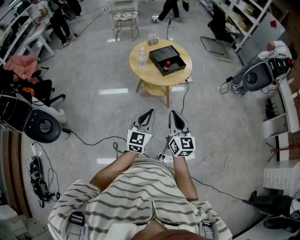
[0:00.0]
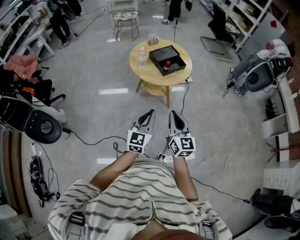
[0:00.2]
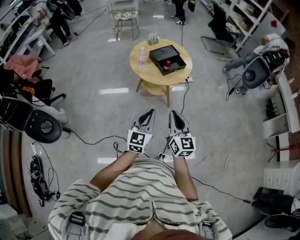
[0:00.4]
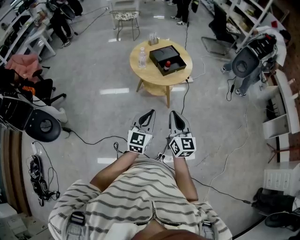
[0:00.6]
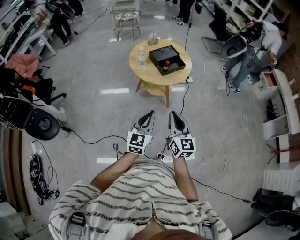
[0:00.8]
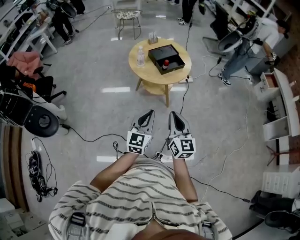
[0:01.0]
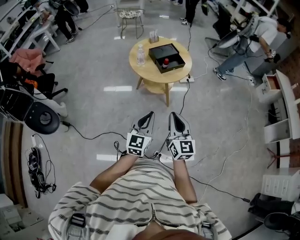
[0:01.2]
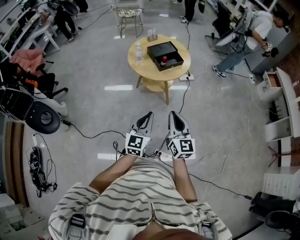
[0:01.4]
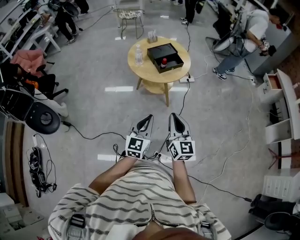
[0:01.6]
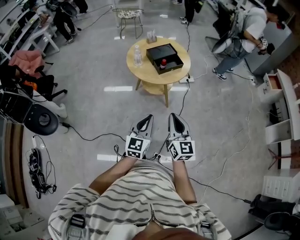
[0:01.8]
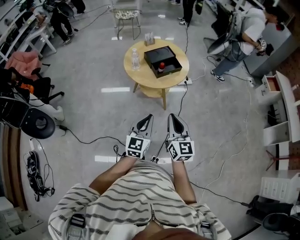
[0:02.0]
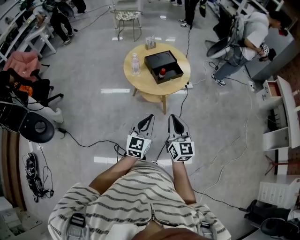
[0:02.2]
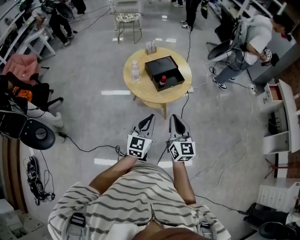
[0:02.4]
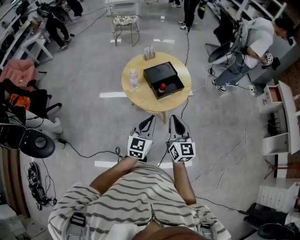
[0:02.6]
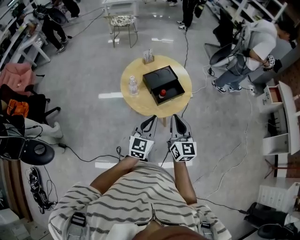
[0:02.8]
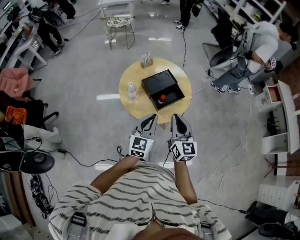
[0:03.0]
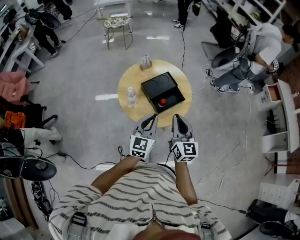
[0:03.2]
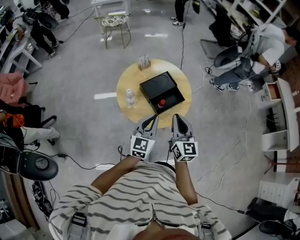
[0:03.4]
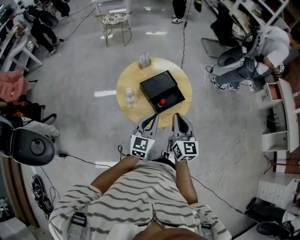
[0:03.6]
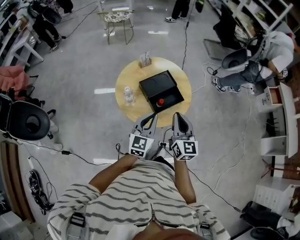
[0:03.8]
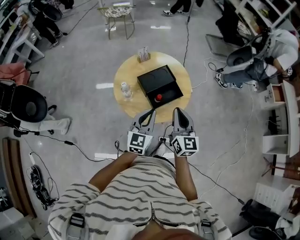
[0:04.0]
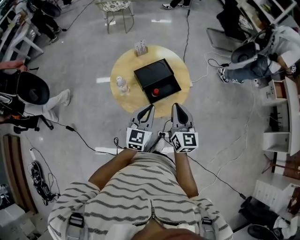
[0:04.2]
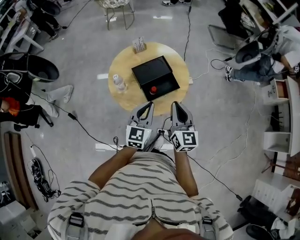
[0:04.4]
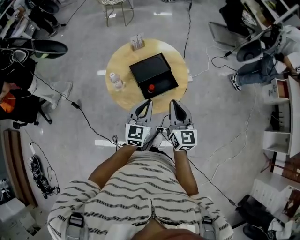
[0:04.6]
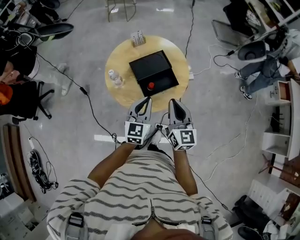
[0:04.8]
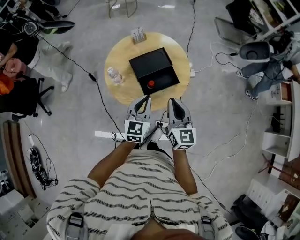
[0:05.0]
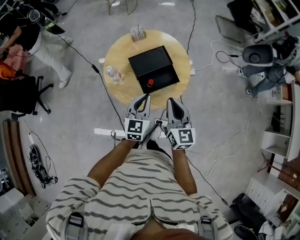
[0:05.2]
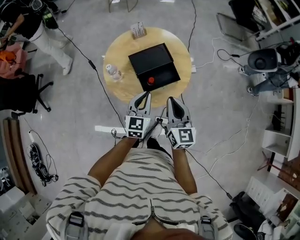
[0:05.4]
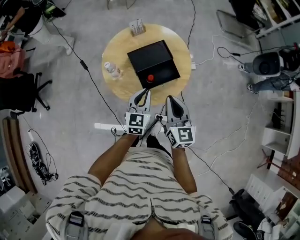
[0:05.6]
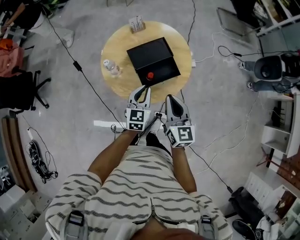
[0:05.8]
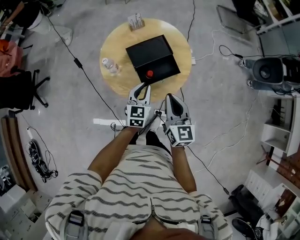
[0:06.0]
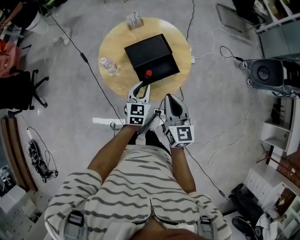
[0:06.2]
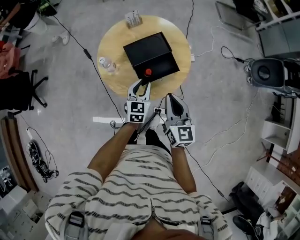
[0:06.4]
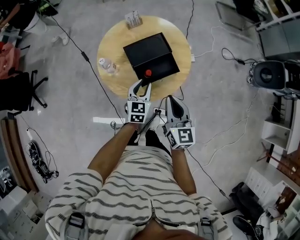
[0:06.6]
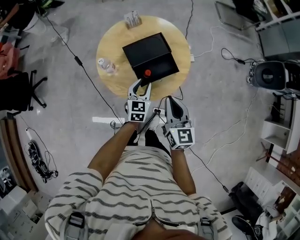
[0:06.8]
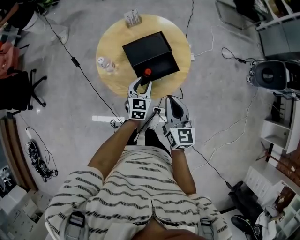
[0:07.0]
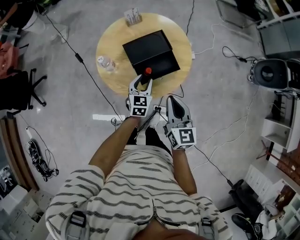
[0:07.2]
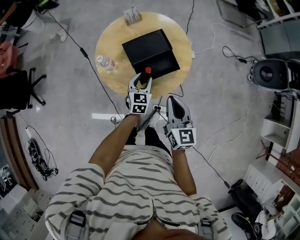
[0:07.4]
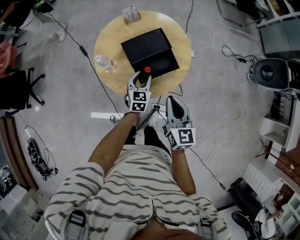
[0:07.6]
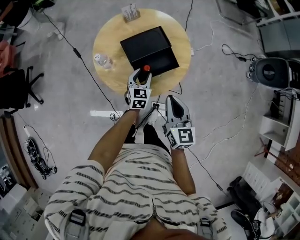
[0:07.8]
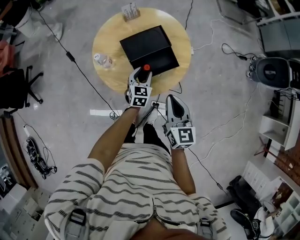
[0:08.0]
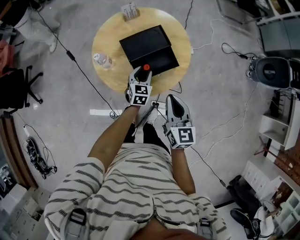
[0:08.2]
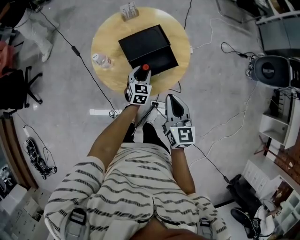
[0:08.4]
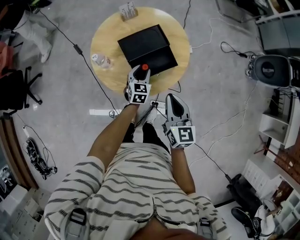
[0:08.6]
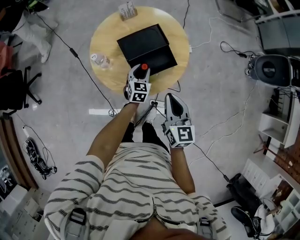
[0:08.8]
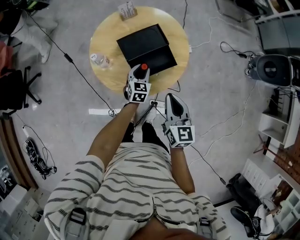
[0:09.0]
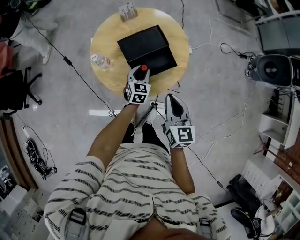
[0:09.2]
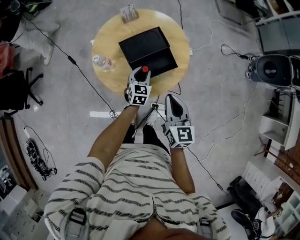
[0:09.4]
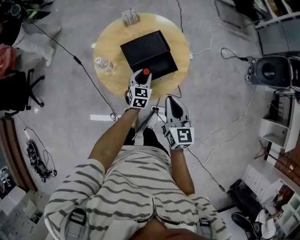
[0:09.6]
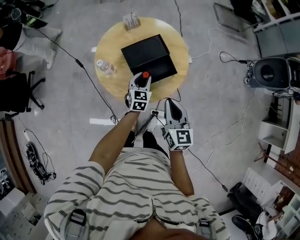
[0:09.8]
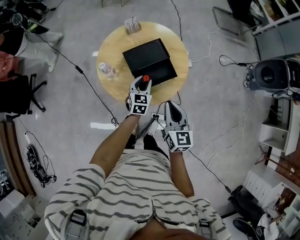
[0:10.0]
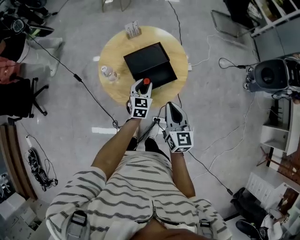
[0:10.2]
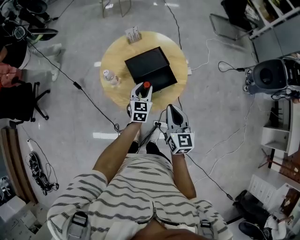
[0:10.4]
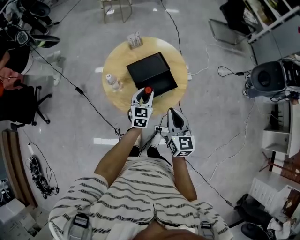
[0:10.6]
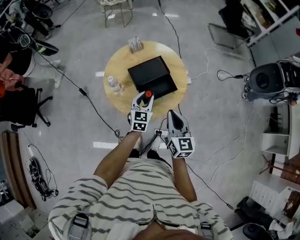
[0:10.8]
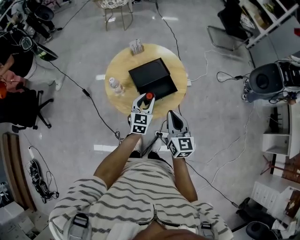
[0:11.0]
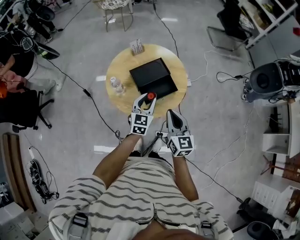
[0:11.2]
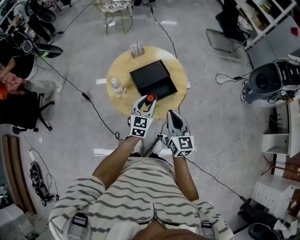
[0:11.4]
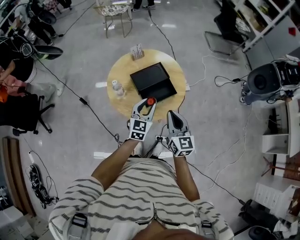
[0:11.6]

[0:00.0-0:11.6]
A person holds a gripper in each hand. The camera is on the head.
0:00.0 to 0:01.4: The grippers both shift to the right by approximately 5 cm.
0:01.4 to 0:02.8: The grippers both shift forward by approximately 30 cm.
0:02.8 to 0:04.4: The right gripper shifts approximately 15 cm forward and to the right, while the left gripper heads forward, covering about 10 cm.
0:04.4 to 0:05.8: The right gripper shifts some 5 cm downward. Meanwhile the left gripper heads downward, covering approximately 10 cm.
0:05.8 to 0:07.2: The left gripper is displaced downward by roughly 10 cm, and opens.
0:07.2 to 0:08.8: The left gripper is displaced downward by about 5 cm.
0:08.8 to 0:10.2: The left gripper is displaced upward by some 5 cm.
0:10.2 to 0:11.6: The left gripper shifts about 15 cm upward and backward.

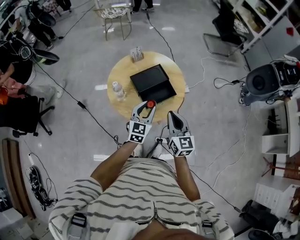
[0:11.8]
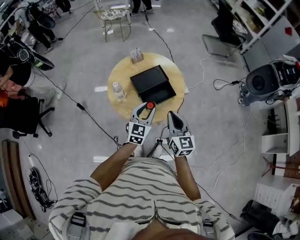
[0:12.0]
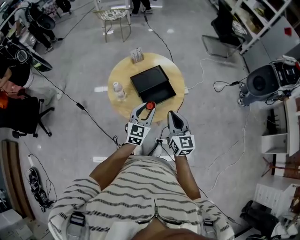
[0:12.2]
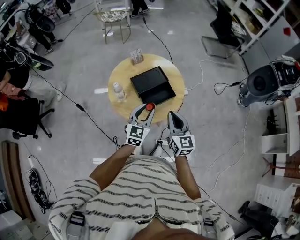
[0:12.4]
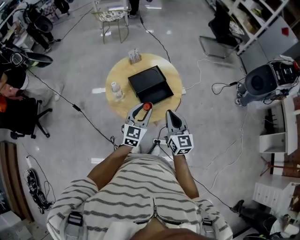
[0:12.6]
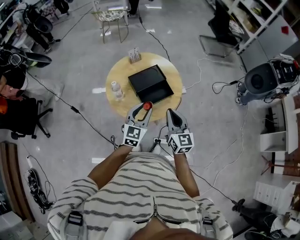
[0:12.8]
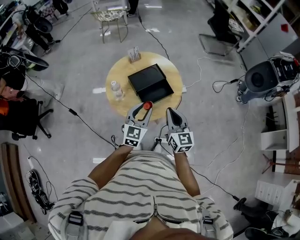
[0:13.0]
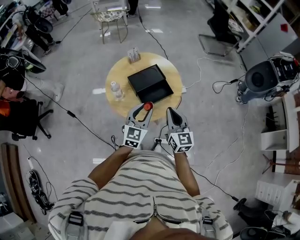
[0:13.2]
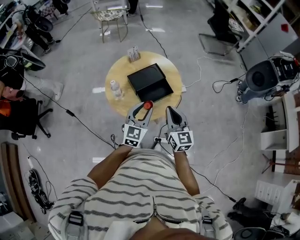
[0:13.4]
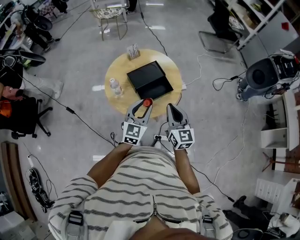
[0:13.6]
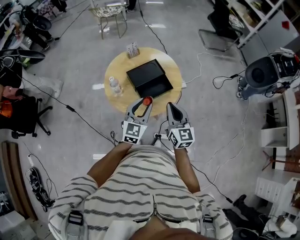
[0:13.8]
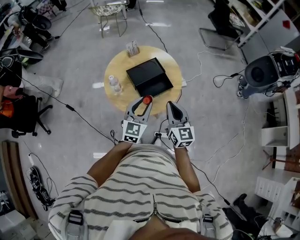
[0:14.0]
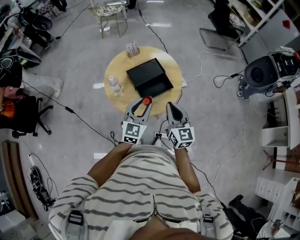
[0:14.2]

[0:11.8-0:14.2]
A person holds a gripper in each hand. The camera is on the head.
0:11.8 to 0:13.0: The grippers make only small movements.
0:13.0 to 0:14.2: Both grippers stay put.

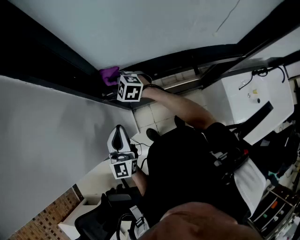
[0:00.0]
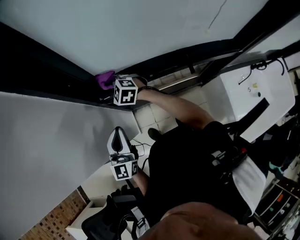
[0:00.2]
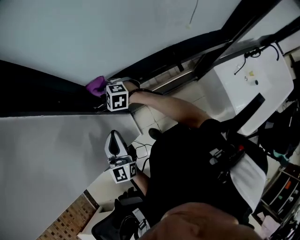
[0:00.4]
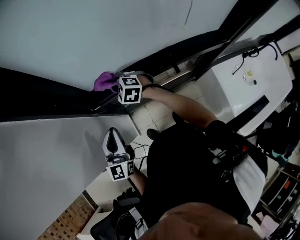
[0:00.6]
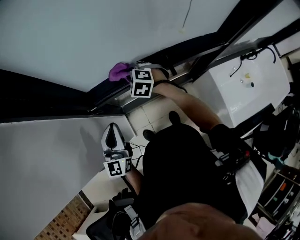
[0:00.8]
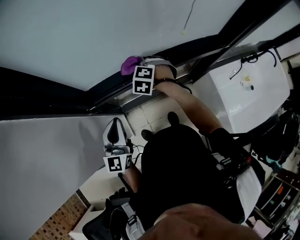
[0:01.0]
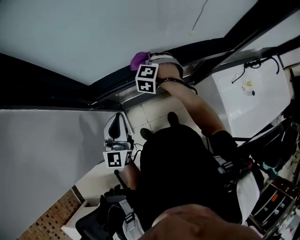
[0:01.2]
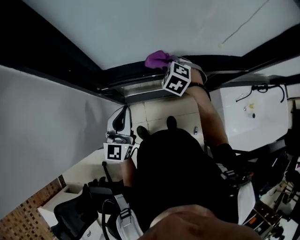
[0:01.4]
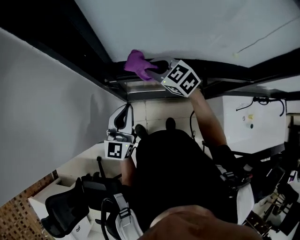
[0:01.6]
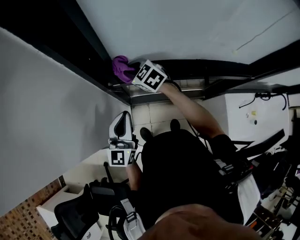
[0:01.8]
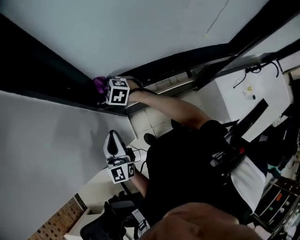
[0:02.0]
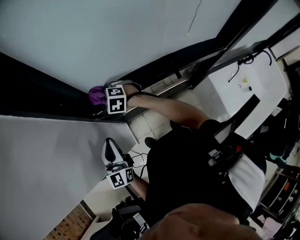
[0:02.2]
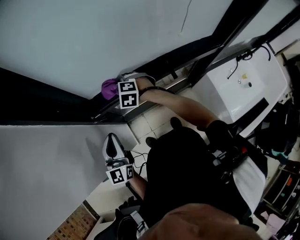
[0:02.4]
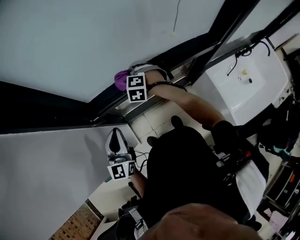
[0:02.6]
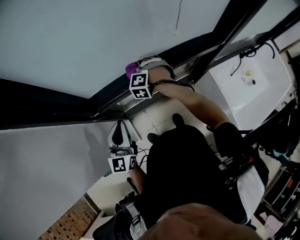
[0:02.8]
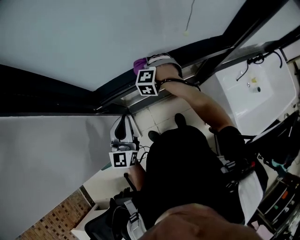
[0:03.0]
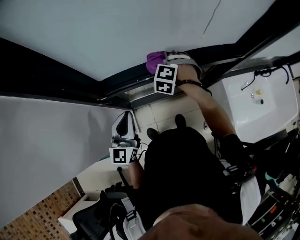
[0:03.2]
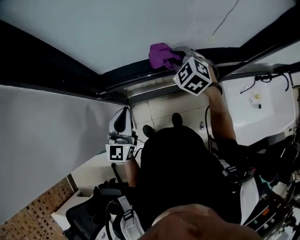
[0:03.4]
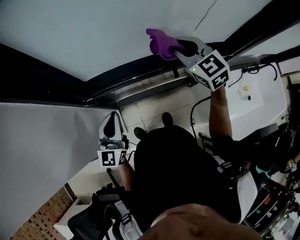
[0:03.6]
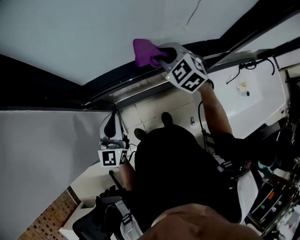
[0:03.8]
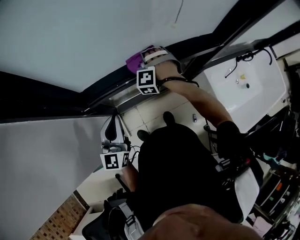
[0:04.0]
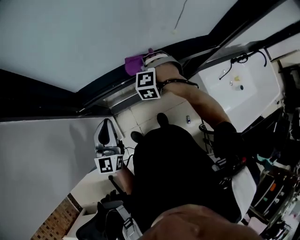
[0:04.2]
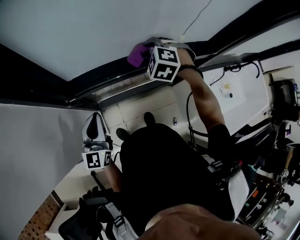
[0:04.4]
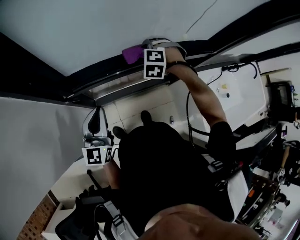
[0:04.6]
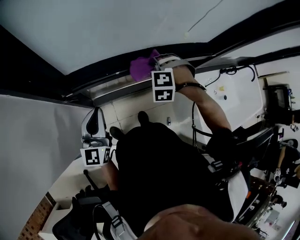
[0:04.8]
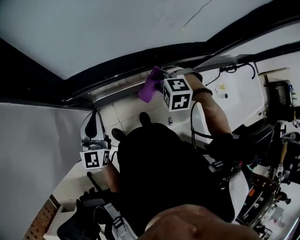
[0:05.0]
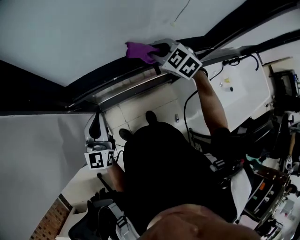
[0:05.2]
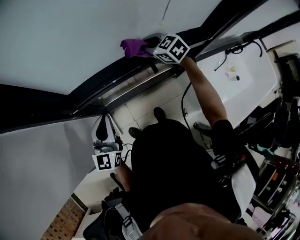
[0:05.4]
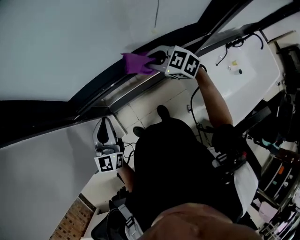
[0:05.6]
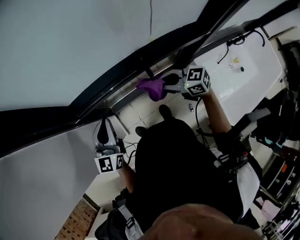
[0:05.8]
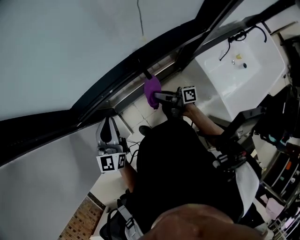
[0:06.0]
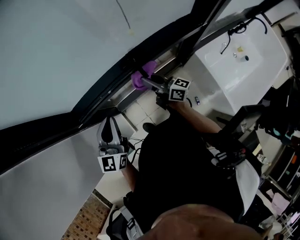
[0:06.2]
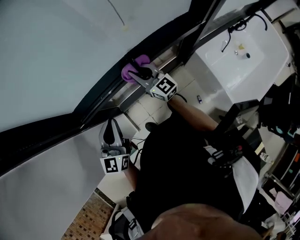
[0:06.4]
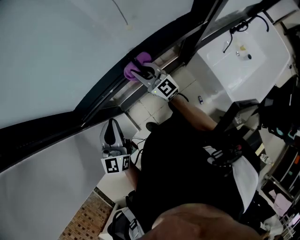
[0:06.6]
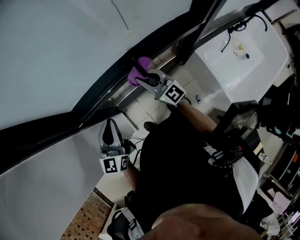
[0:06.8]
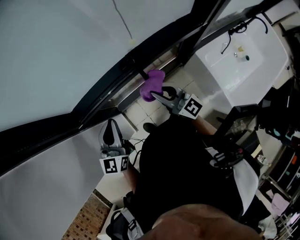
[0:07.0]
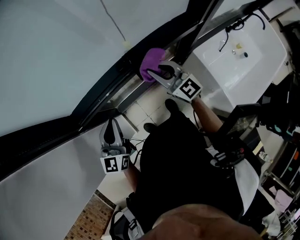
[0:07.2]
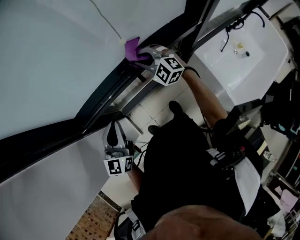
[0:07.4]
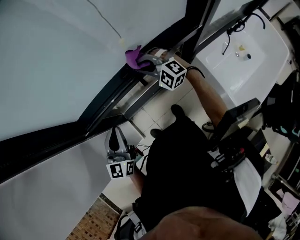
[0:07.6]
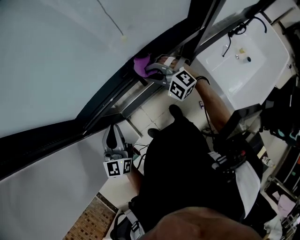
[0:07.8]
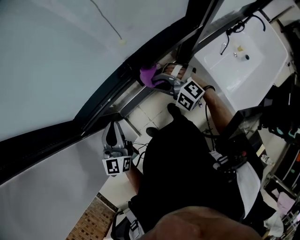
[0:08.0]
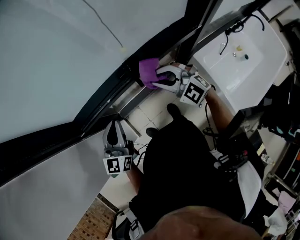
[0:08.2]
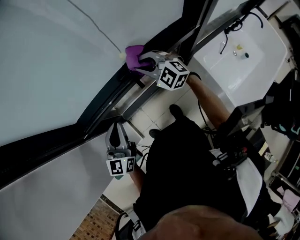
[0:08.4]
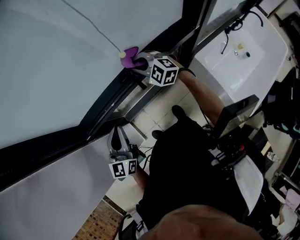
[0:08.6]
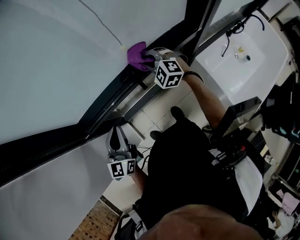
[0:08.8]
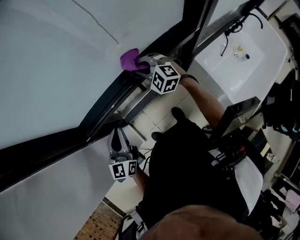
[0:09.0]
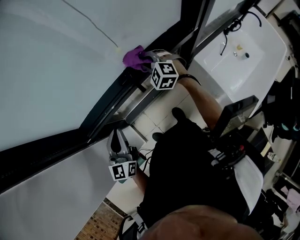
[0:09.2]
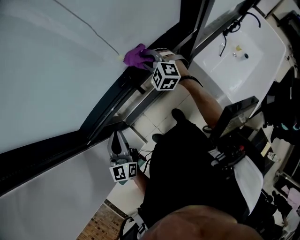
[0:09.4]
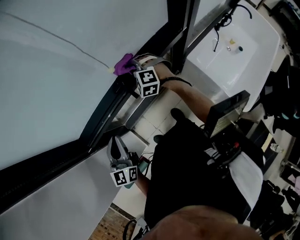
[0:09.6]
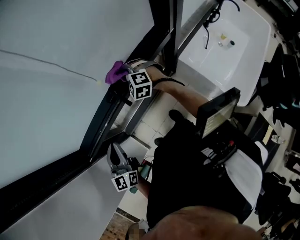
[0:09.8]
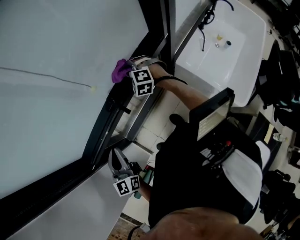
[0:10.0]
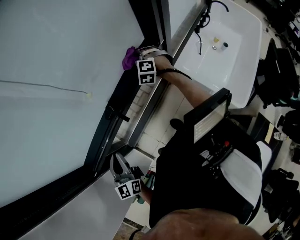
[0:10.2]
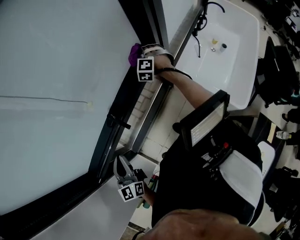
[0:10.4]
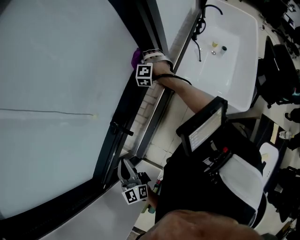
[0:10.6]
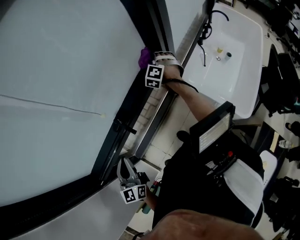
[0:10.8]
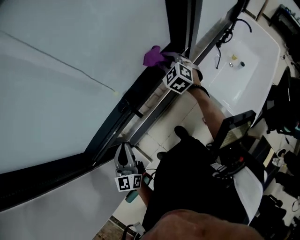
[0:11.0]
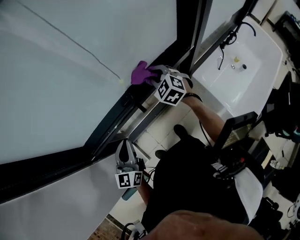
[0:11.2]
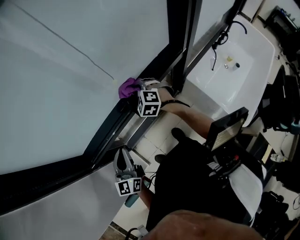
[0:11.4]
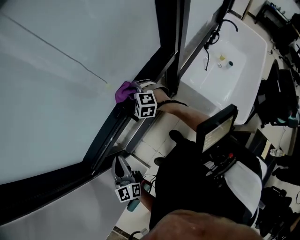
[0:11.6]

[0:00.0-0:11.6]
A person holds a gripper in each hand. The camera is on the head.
0:00.0 to 0:01.4: The right gripper ends up some 25 cm from where it was, and swivels some 30 degrees; the left gripper shifts by about 10 cm.
0:01.4 to 0:02.8: The right gripper moves about 5 cm upward and comes back, and rotates some 30 degrees.
0:02.8 to 0:04.4: The right gripper goes up and down, about 20 cm each way, reversing 2 times.
0:04.4 to 0:05.8: The right gripper goes up and down, roughly 10 cm each way, reversing 2 times, and tilts its fingers approximately 30 degrees upward; the left gripper shifts by approximately 5 cm.
0:05.8 to 0:07.2: The right gripper shifts by some 10 cm, and rotates roughly 40 degrees. The left gripper changes place by roughly 5 cm.
0:07.2 to 0:08.8: The right gripper moves forward and backward over roughly 15 cm, changing direction 2 times, and changes its angle by roughly 50 degrees.
0:08.8 to 0:10.2: The right gripper moves some 20 cm, and changes its angle by roughly 40 degrees.
0:10.2 to 0:11.6: The right gripper moves about 10 cm upward and comes back.
